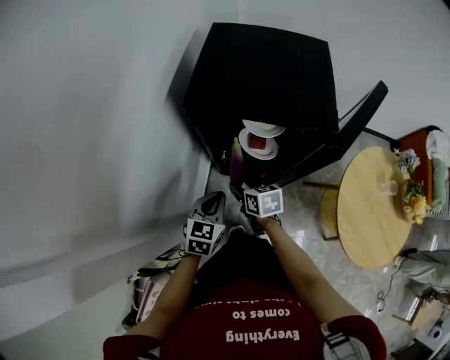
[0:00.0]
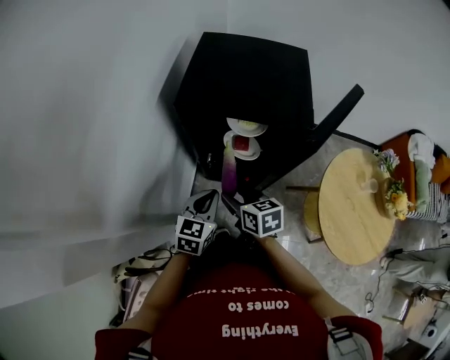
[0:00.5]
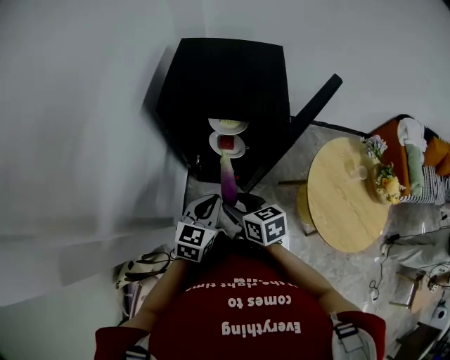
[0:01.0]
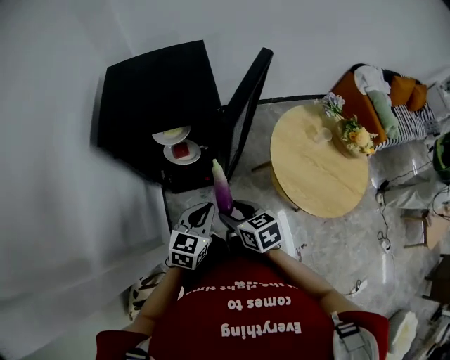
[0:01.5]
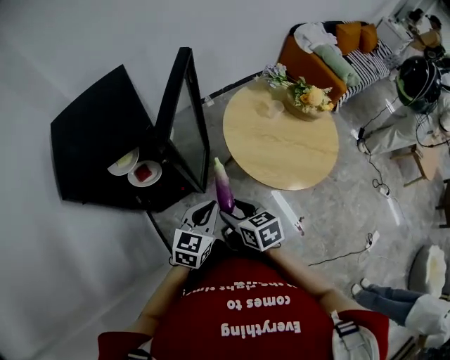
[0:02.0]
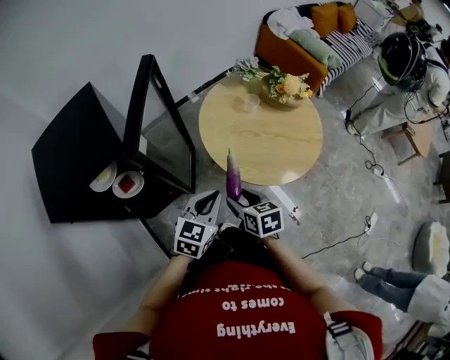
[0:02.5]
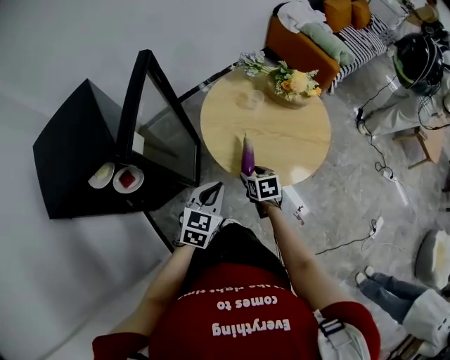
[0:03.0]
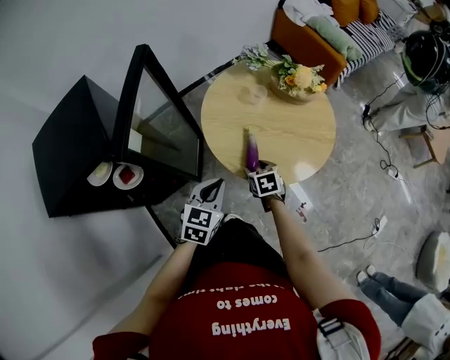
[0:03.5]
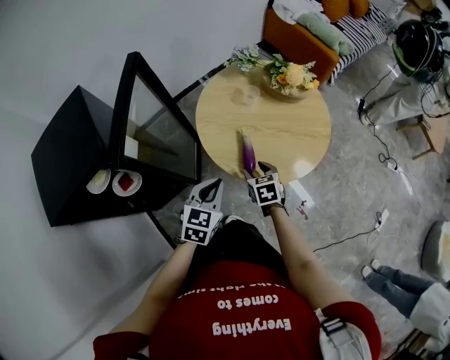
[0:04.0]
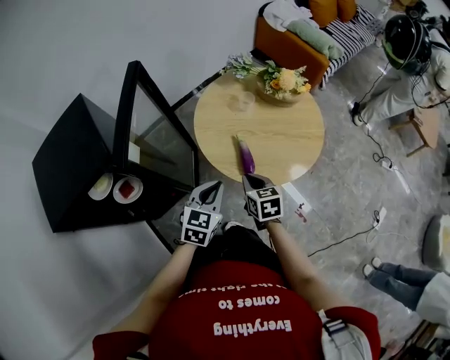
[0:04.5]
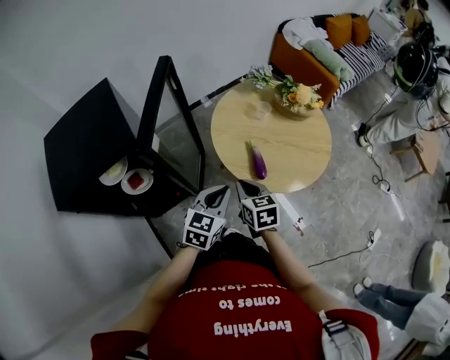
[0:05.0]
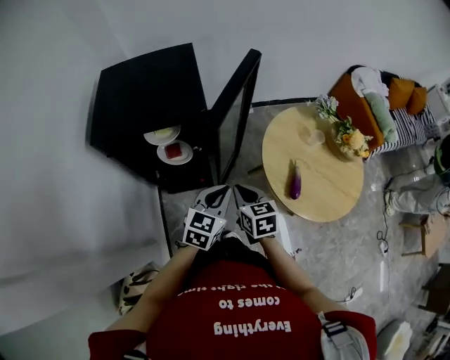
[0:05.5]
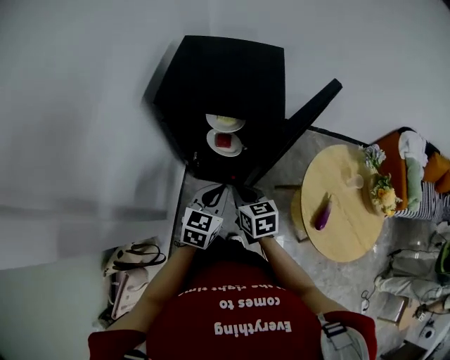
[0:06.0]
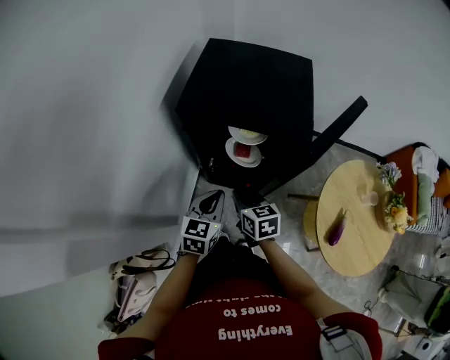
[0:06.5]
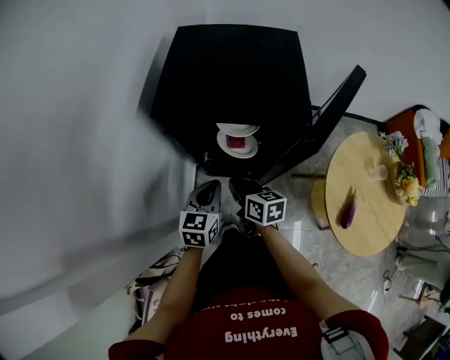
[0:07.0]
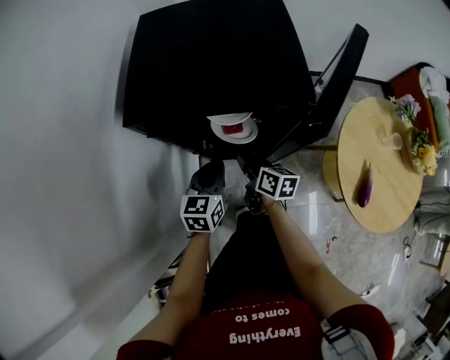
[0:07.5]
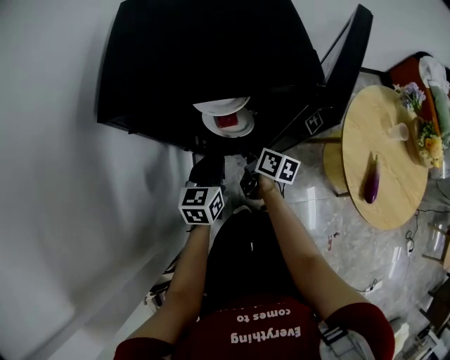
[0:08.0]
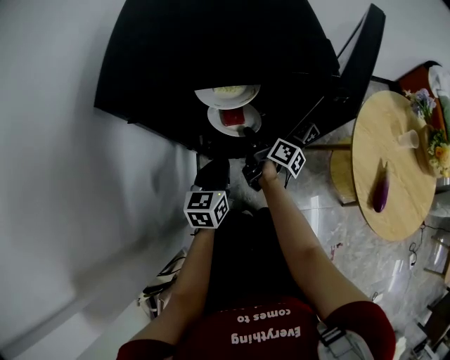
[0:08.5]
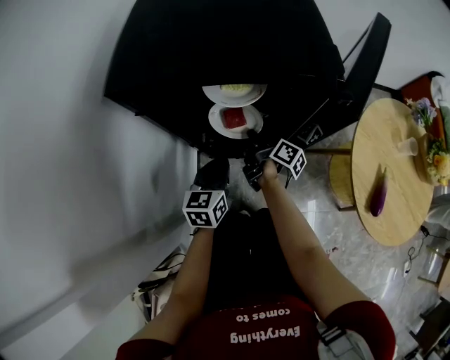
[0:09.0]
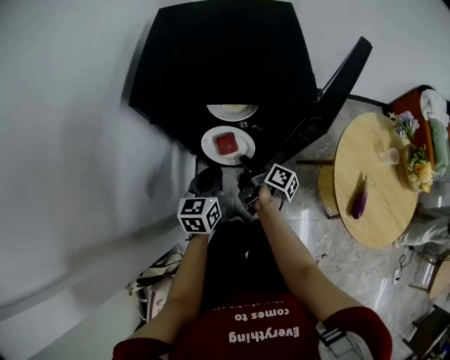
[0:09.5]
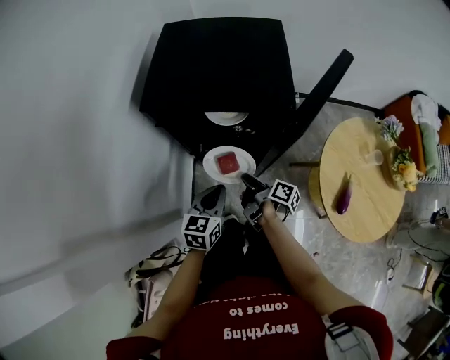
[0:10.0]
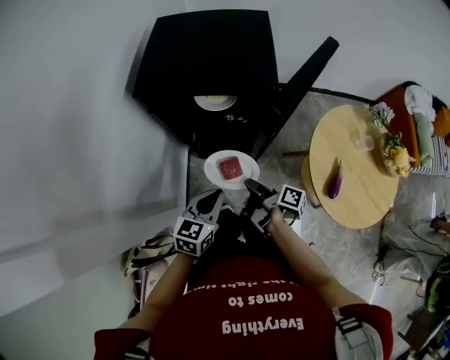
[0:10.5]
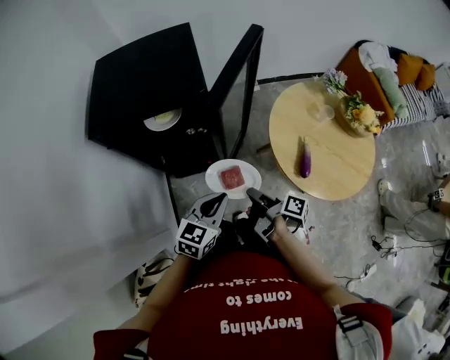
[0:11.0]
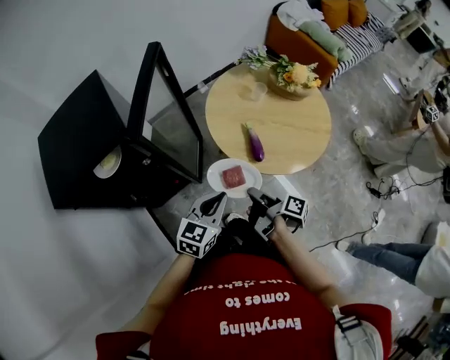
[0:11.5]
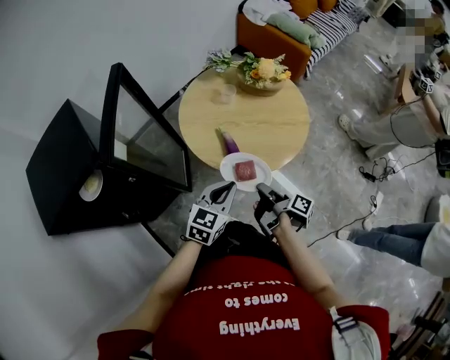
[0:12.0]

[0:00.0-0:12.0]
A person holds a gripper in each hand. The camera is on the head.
0:00.0 to 0:02.0: The left gripper shifts by about 30 cm, and swivels about 50 degrees. Meanwhile the right gripper changes place by approximately 35 cm, and turns by roughly 30 degrees.
0:02.0 to 0:04.0: The right gripper travels to the right, downward and forward by roughly 30 cm, and turns by some 20 degrees. Meanwhile the left gripper moves to the right, forward and downward, some 15 cm.
0:04.0 to 0:06.0: The right gripper shifts by roughly 40 cm, turns by approximately 50 degrees, and closes its fingers; the left gripper moves approximately 35 cm, and rotates some 50 degrees.
0:06.0 to 0:08.0: The grippers both shift downward and forward by some 25 cm. The right gripper rolls clockwise, seen from behind, by some 50 degrees, and opens its fingers.
0:08.0 to 0:10.0: Both grippers move backward and upward, roughly 15 cm. The right gripper changes its angle by approximately 30 degrees, and closes its fingers.
0:10.0 to 0:12.0: Both grippers are carried some 40 cm. The right gripper changes its angle by approximately 60 degrees, while the left gripper swivels some 60 degrees.

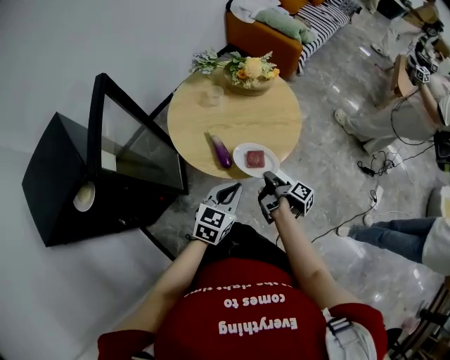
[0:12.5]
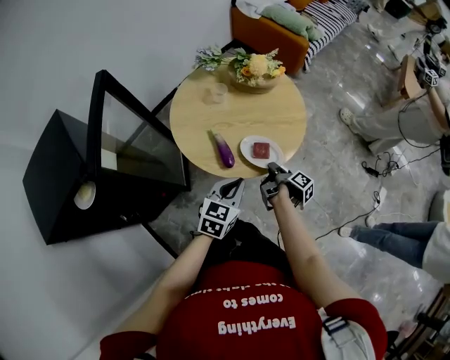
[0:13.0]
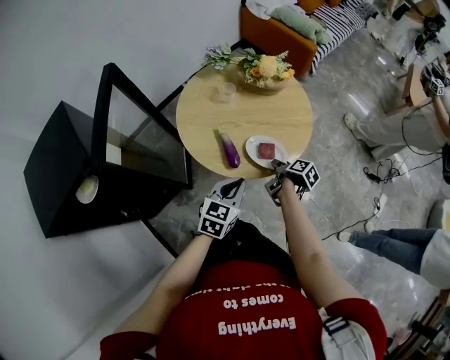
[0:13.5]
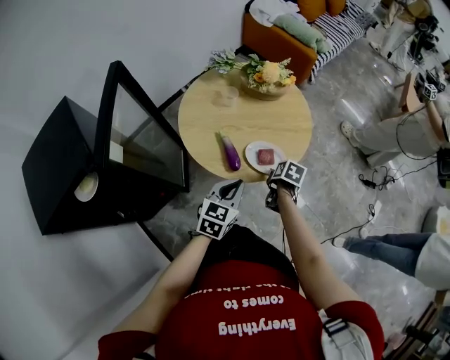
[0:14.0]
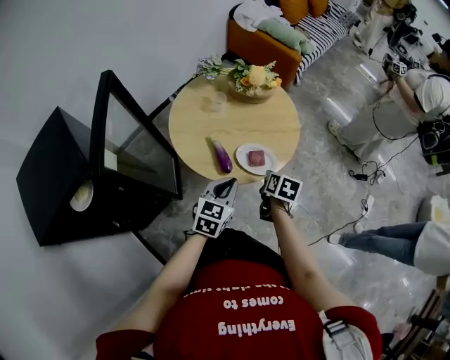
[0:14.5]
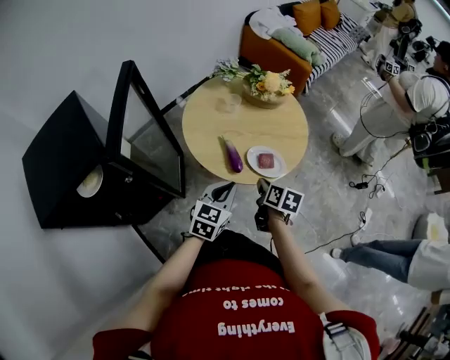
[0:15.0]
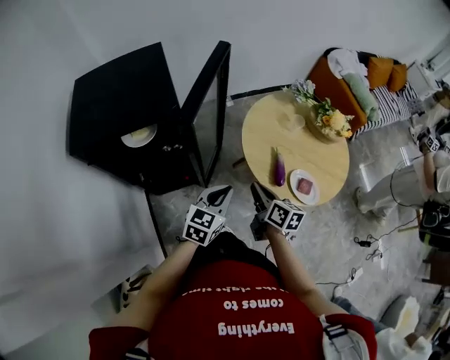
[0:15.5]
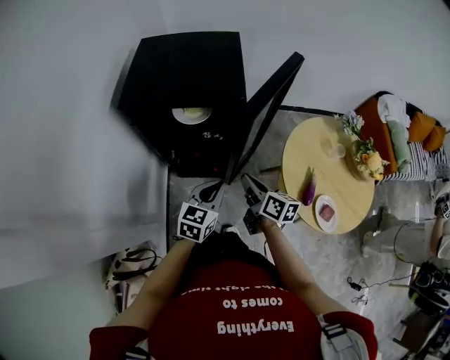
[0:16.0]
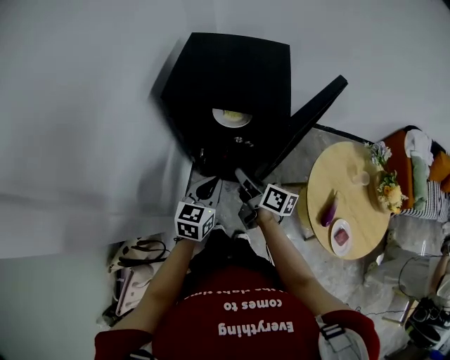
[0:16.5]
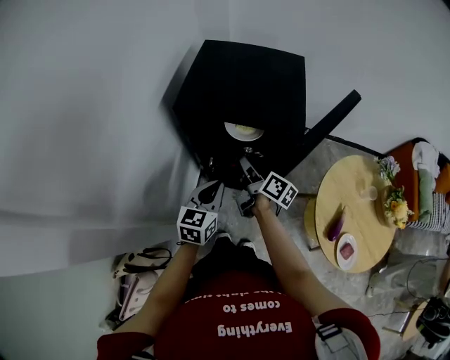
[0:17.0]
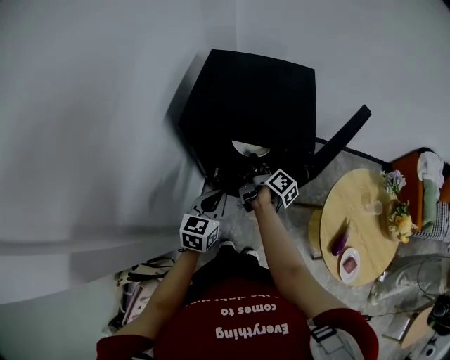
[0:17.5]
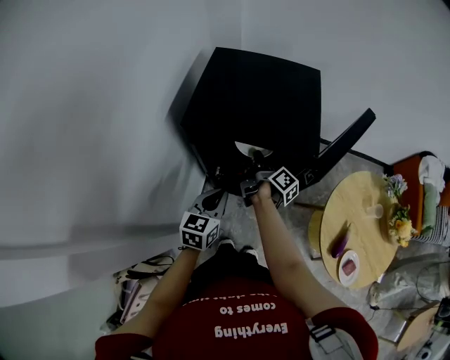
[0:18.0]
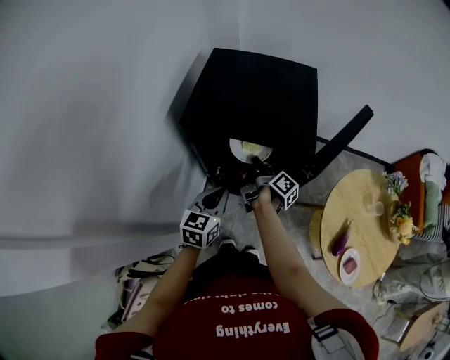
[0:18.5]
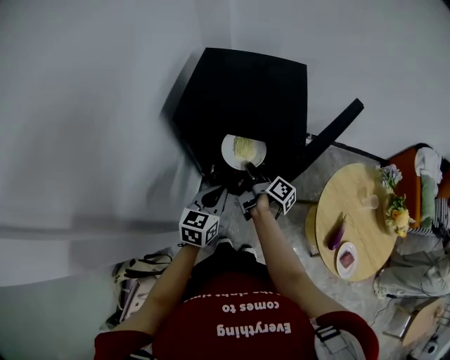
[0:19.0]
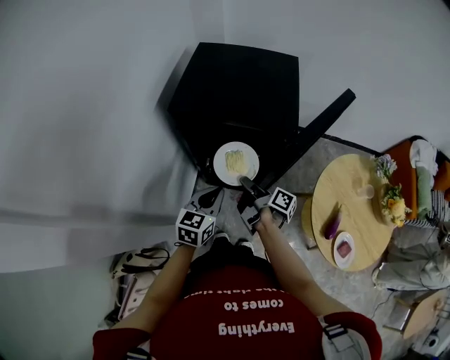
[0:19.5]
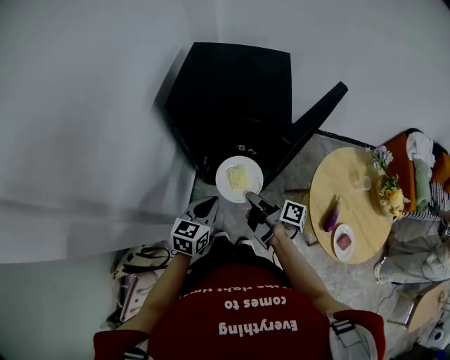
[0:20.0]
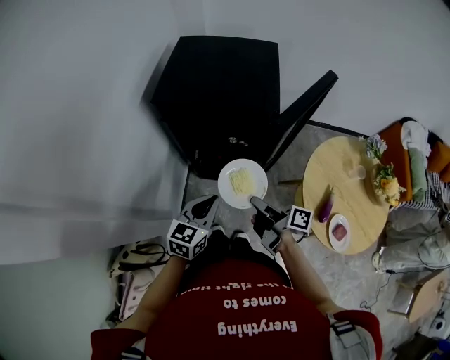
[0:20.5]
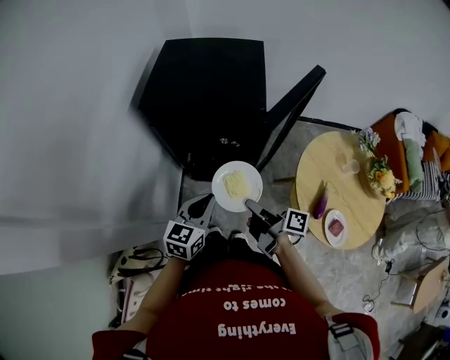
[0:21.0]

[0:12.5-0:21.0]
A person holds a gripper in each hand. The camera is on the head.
0:12.5 to 0:14.5: The right gripper rolls counterclockwise, seen from behind, by some 60 degrees, and opens, then closes once more.
0:14.5 to 0:16.5: The pair of grippers is taken approximately 50 cm. The left gripper changes its angle by approximately 70 degrees, while the right gripper points its fingers roughly 50 degrees further upward.
0:16.5 to 0:19.0: The right gripper shifts roughly 10 cm forward, rotates approximately 30 degrees, and opens and closes again. The left gripper goes roughly 5 cm forward.
0:19.0 to 0:21.0: The left gripper travels backward by about 10 cm. The right gripper heads backward, covering roughly 20 cm.

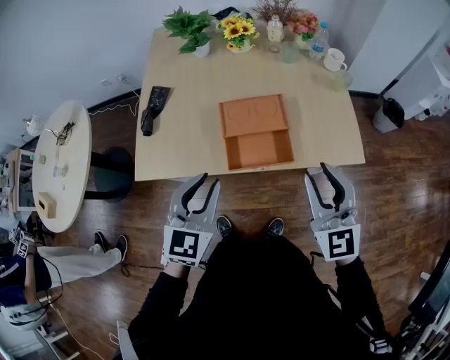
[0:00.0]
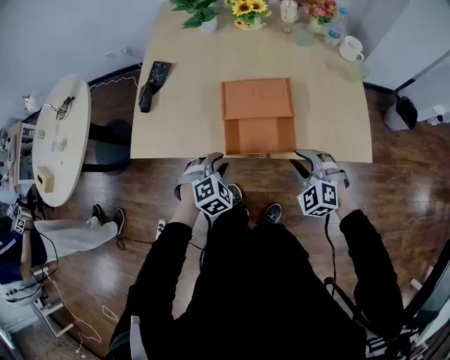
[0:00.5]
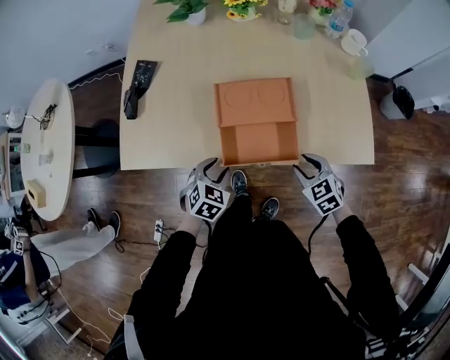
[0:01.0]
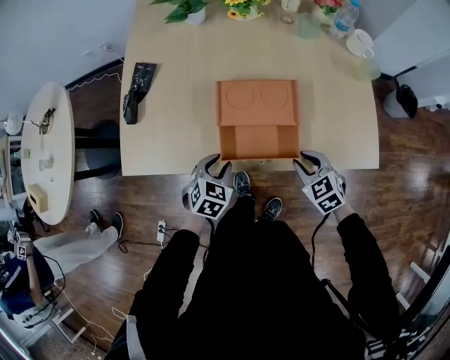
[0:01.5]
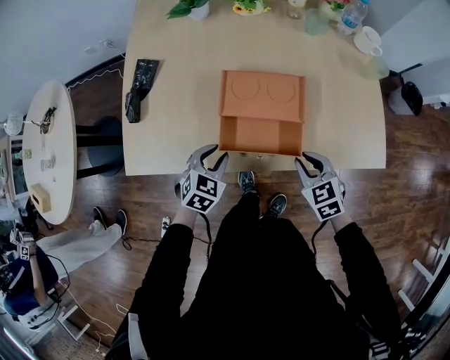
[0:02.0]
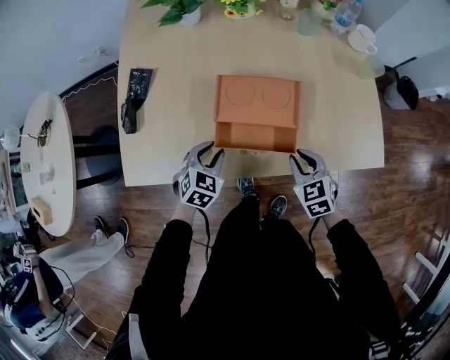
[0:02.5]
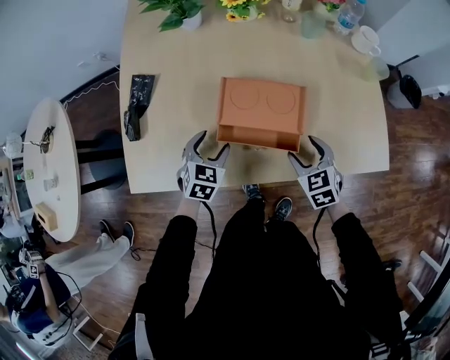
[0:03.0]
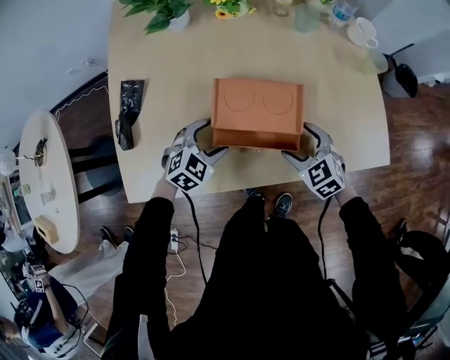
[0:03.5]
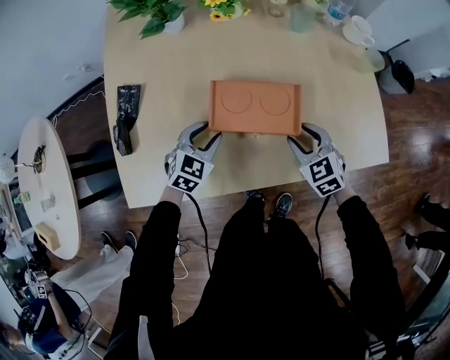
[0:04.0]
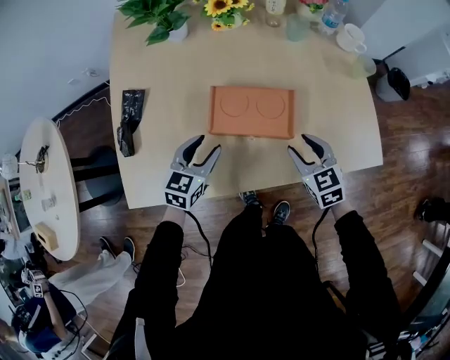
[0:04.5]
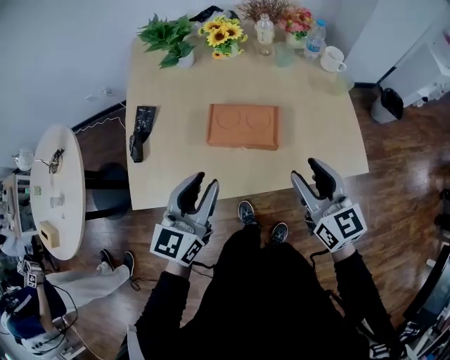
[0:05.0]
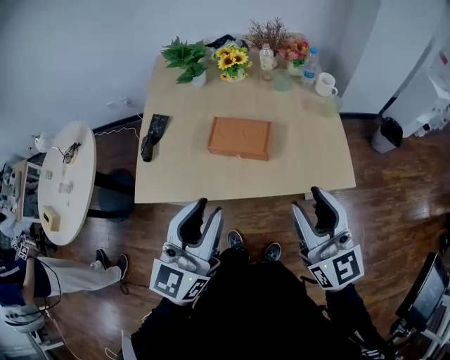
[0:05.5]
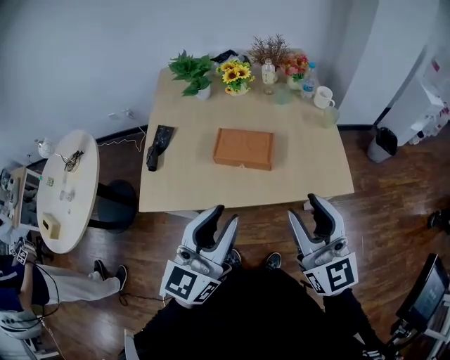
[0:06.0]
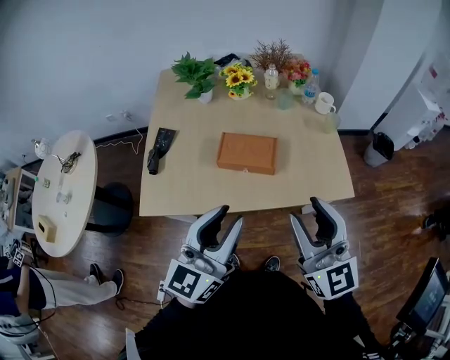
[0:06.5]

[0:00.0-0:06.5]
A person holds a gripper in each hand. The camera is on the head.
0:00.0 to 0:02.0: The right gripper moves downward, roughly 30 cm, and angles its fingers downward, by about 40 degrees, while the left gripper travels downward and forward by some 30 cm, and rotates roughly 30 degrees.
0:02.0 to 0:04.5: The two grippers go some 10 cm forward. The left gripper changes its angle by some 20 degrees, and opens, then closes once more, while the right gripper opens and closes again.
0:04.5 to 0:06.5: The grippers both shift upward and backward by roughly 40 cm. The right gripper points its fingers roughly 40 degrees further upward; the left gripper tilts its fingers about 40 degrees upward.
